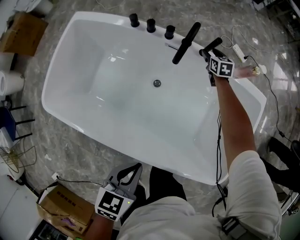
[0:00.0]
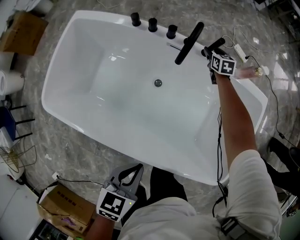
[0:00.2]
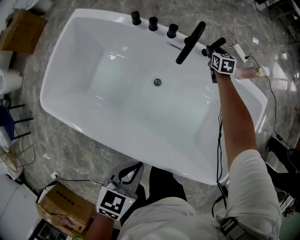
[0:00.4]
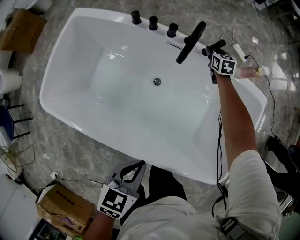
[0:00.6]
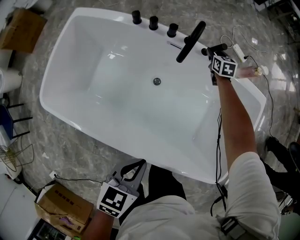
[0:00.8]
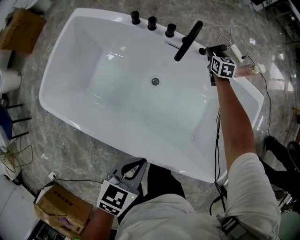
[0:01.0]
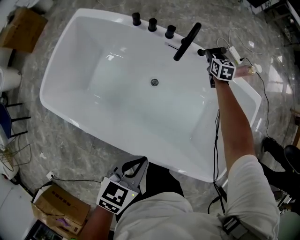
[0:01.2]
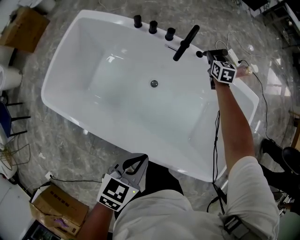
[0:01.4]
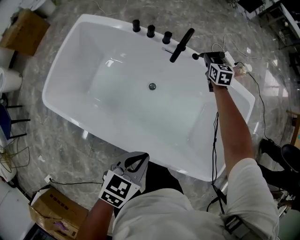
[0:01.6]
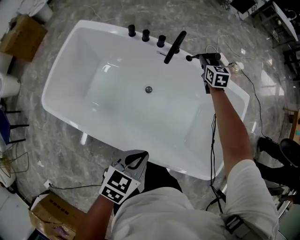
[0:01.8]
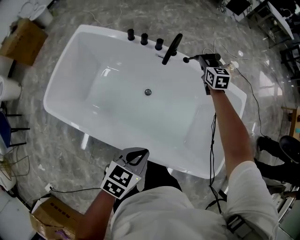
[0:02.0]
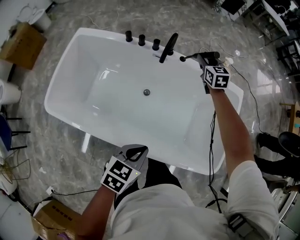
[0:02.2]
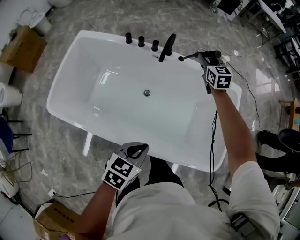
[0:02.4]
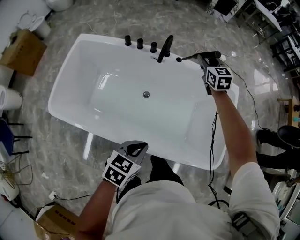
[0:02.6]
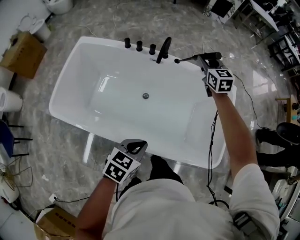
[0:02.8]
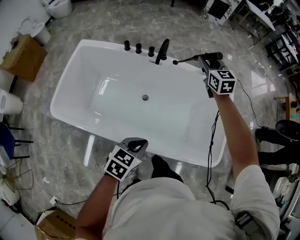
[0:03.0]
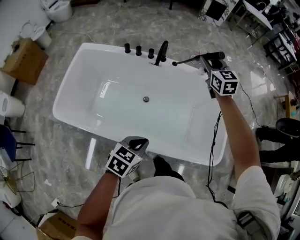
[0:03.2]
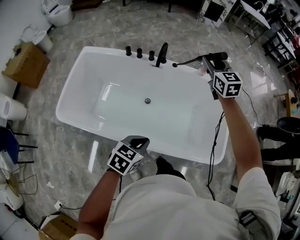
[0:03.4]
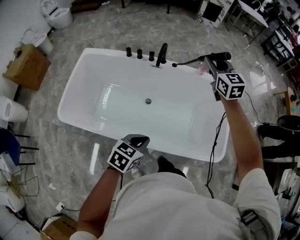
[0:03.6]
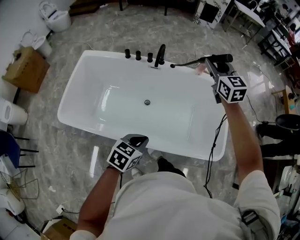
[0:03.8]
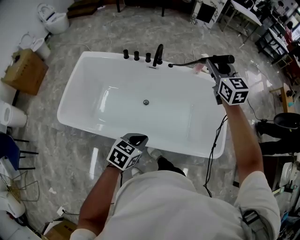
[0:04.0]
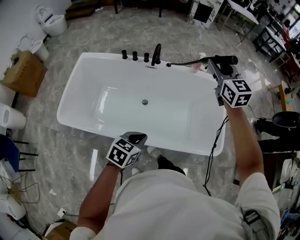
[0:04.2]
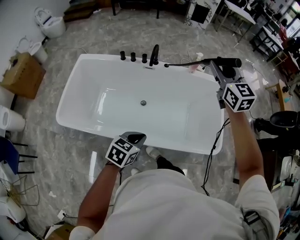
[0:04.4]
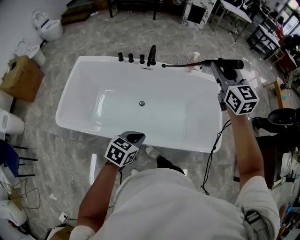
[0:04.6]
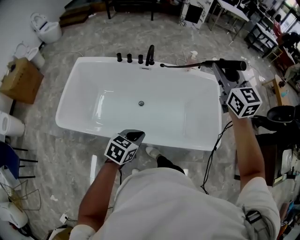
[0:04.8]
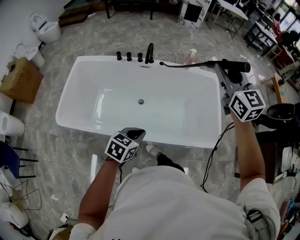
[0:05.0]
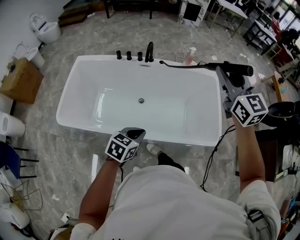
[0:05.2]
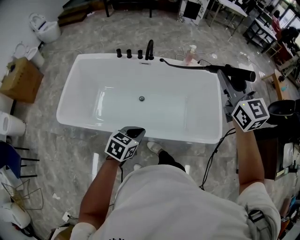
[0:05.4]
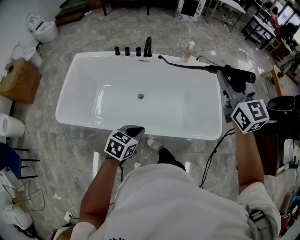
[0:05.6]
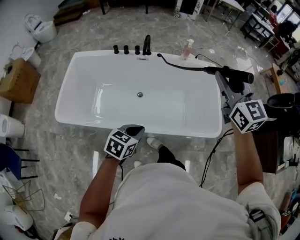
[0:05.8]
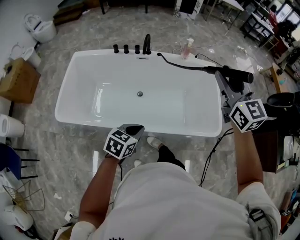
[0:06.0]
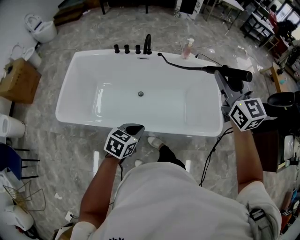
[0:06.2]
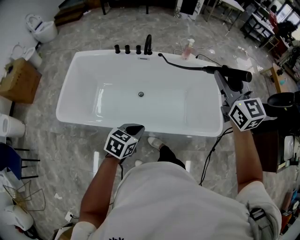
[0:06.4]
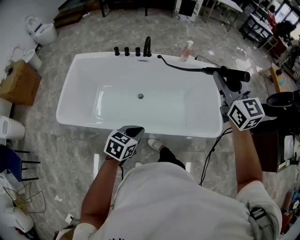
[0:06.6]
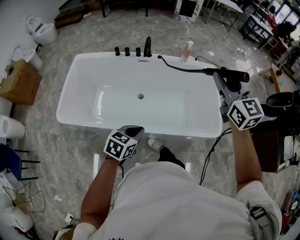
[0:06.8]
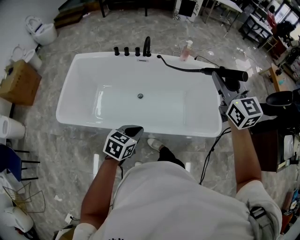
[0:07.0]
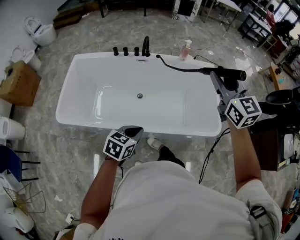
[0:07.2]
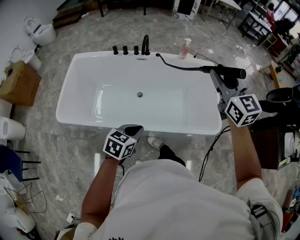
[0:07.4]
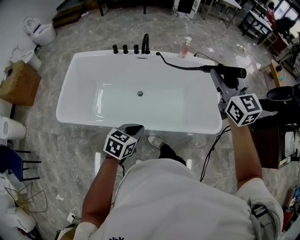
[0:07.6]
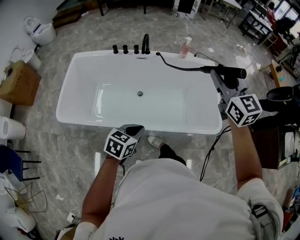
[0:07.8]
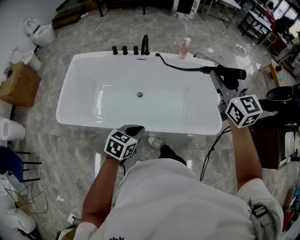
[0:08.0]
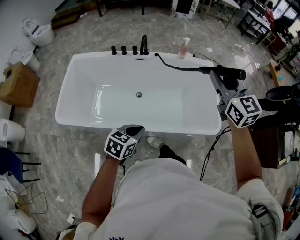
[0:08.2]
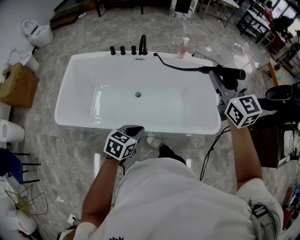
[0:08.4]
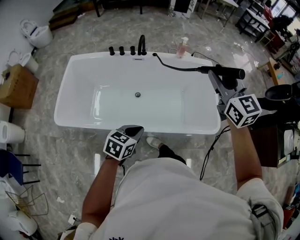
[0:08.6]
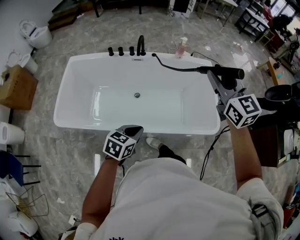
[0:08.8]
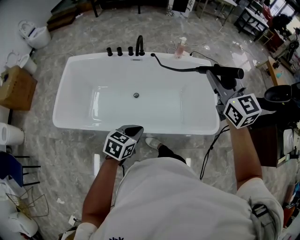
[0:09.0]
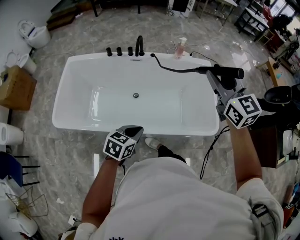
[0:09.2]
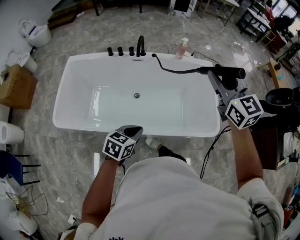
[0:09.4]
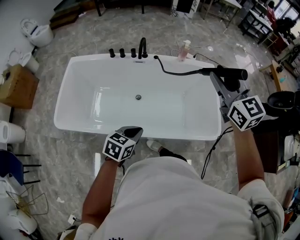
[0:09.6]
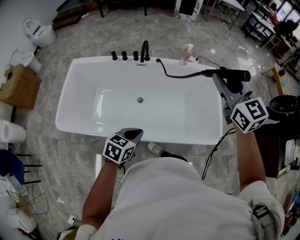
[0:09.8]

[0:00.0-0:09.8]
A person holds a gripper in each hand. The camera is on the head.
0:00.0 to 0:01.4: The right gripper heads upward, covering roughly 10 cm, and closes up.
0:01.4 to 0:02.8: The right gripper travels upward and backward by some 30 cm; the left gripper shifts about 10 cm backward.
0:02.8 to 0:04.2: The left gripper travels backward by about 5 cm; the right gripper is displaced upward, backward and to the right by approximately 30 cm.
0:04.2 to 0:05.6: The left gripper shifts some 5 cm backward. The right gripper shifts approximately 20 cm backward.
0:05.6 to 0:08.4: There are only small adjustments of the grippers.
0:08.4 to 0:09.8: The two grippers go approximately 5 cm forward.

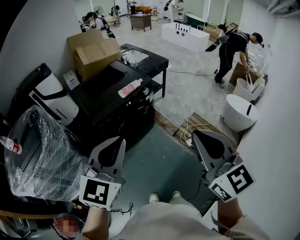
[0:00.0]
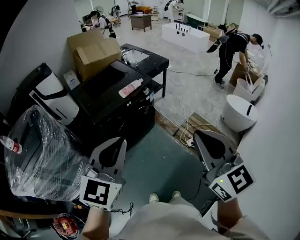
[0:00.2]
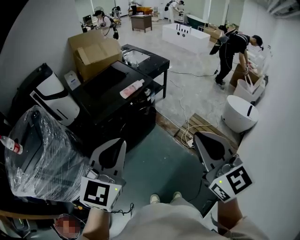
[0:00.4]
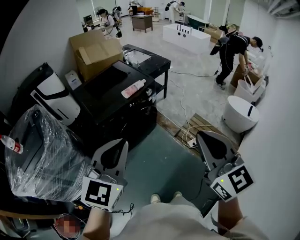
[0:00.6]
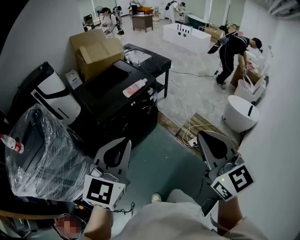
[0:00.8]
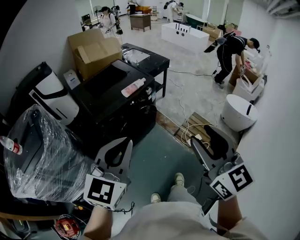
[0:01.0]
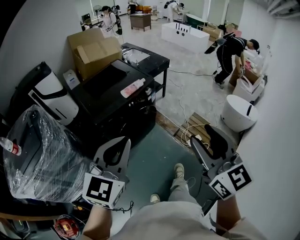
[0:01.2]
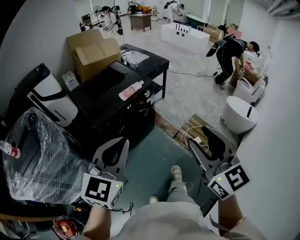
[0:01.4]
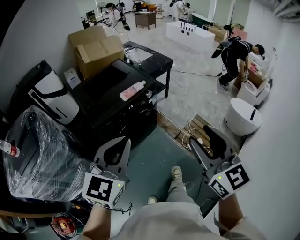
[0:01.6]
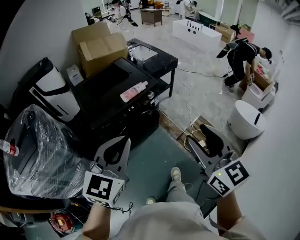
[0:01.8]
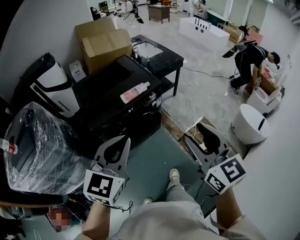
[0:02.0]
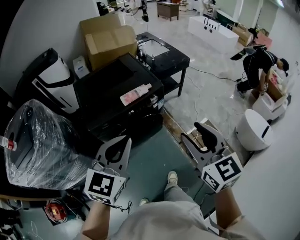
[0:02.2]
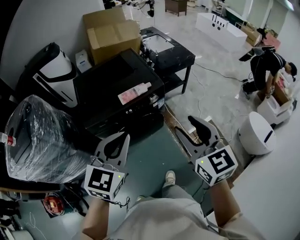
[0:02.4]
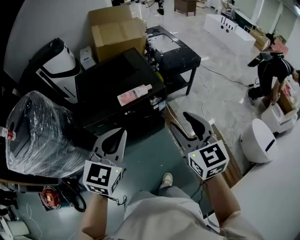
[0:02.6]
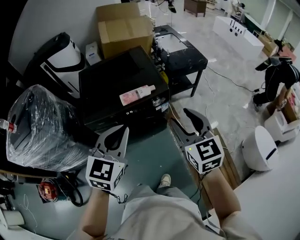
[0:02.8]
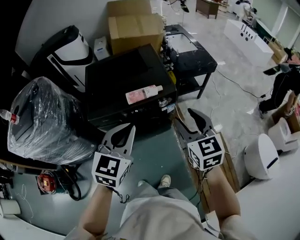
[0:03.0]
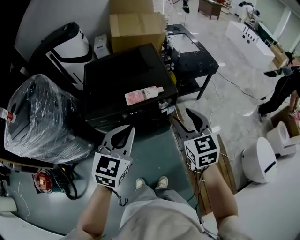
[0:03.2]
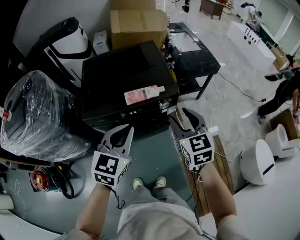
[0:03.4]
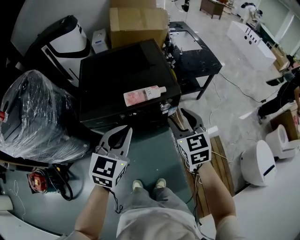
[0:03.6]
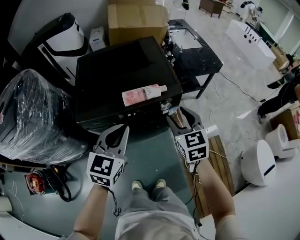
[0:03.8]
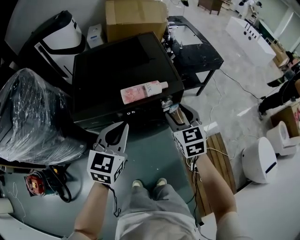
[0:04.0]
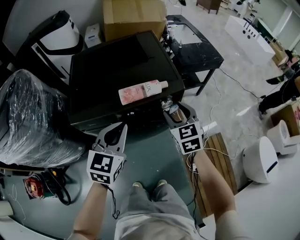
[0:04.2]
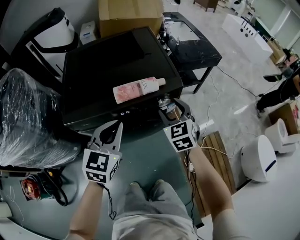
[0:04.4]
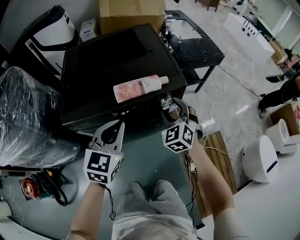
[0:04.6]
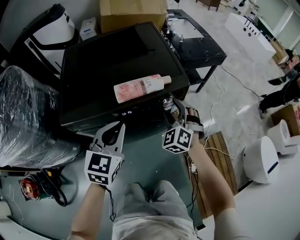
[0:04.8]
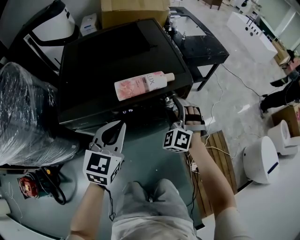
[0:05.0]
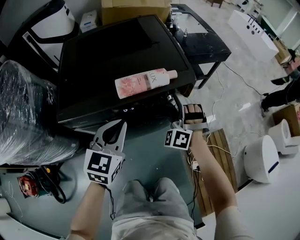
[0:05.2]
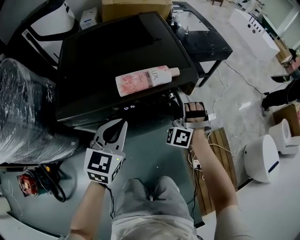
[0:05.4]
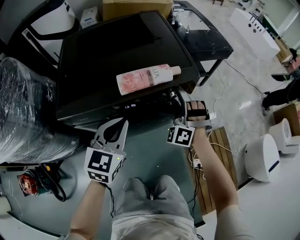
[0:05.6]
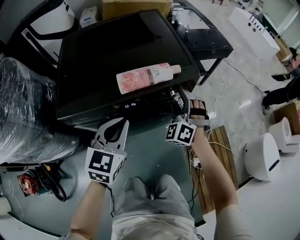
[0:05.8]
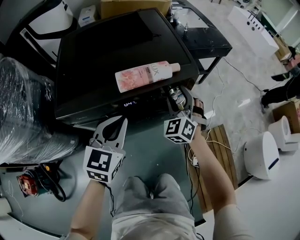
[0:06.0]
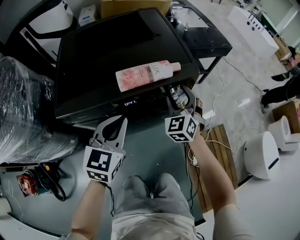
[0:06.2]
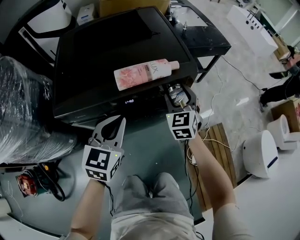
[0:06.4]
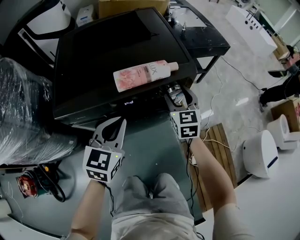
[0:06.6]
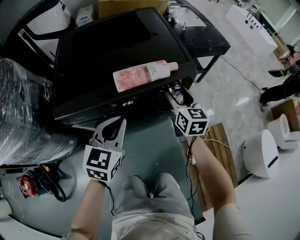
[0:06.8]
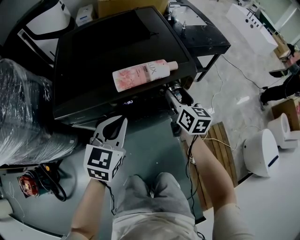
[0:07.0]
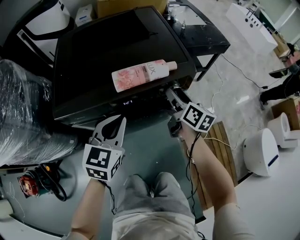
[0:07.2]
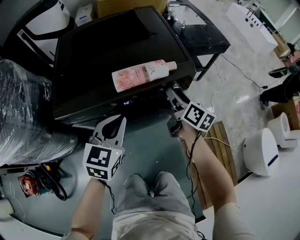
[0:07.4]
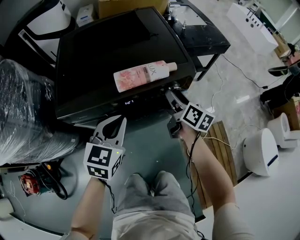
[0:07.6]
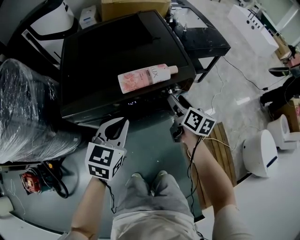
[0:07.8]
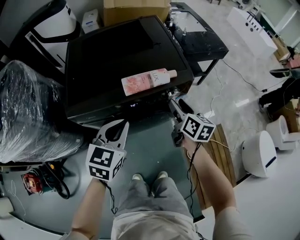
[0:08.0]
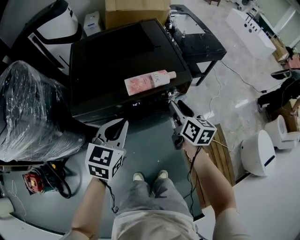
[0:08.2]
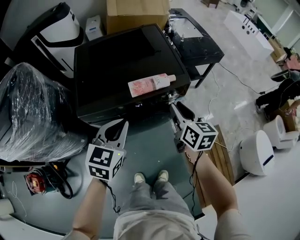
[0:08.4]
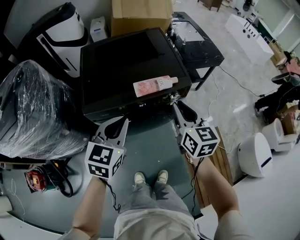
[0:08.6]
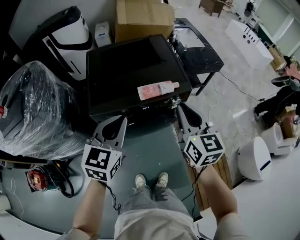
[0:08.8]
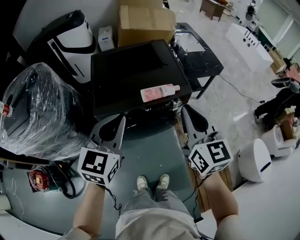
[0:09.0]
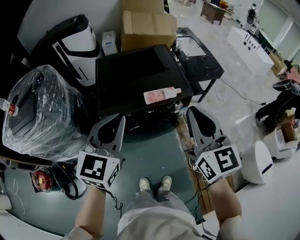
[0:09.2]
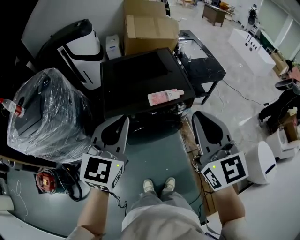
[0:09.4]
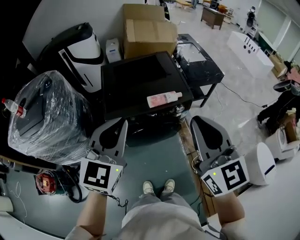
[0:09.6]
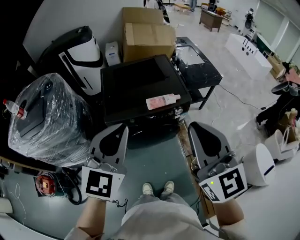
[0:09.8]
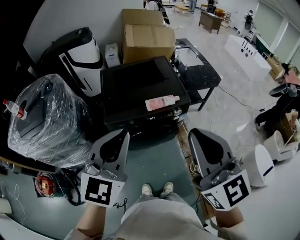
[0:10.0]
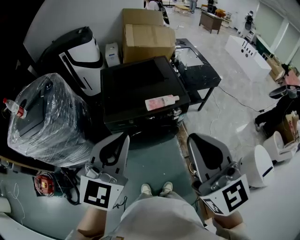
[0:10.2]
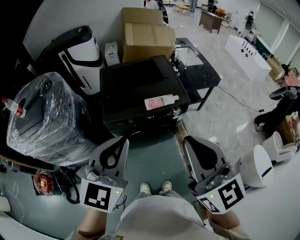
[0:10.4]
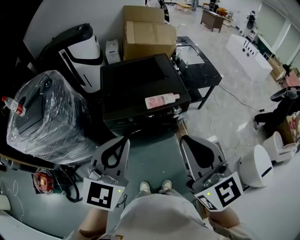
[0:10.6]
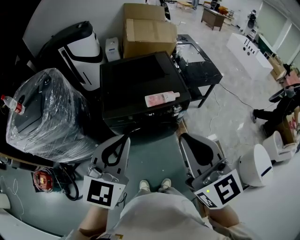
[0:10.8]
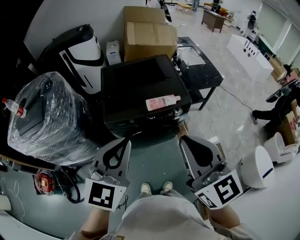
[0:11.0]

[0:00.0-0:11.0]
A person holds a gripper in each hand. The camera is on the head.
0:00.0 to 0:01.6: Both grippers move forward, some 5 cm. The right gripper opens.
0:01.6 to 0:03.2: The right gripper shifts roughly 40 cm forward and downward, and swivels some 30 degrees. The left gripper travels forward, downward and to the right by about 30 cm, and rotates approximately 30 degrees.
0:03.2 to 0:04.8: The two grippers go approximately 25 cm downward and forward. The right gripper rotates around the line of its fingers by about 40 degrees, counterclockwise from behind.
0:06.2 to 0:07.8: The right gripper twists about 80 degrees clockwise, seen from behind.
0:07.8 to 0:09.4: The left gripper goes some 35 cm upward, and changes its angle by about 20 degrees; the right gripper travels upward and backward by about 50 cm, twists about 50 degrees counterclockwise, seen from behind, and closes up.
0:09.4 to 0:11.0: The grippers both shift backward by roughly 5 cm.

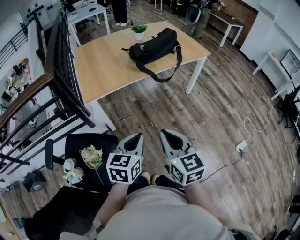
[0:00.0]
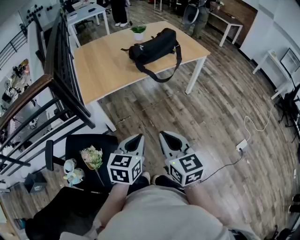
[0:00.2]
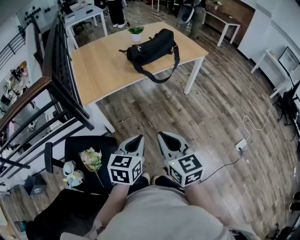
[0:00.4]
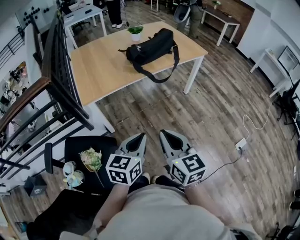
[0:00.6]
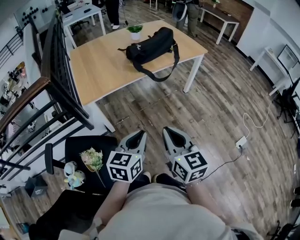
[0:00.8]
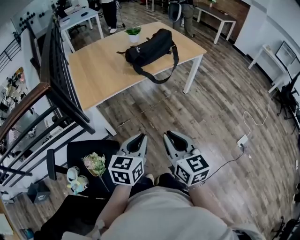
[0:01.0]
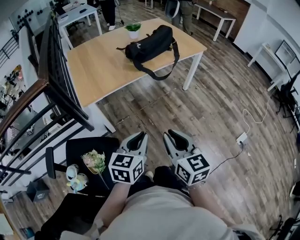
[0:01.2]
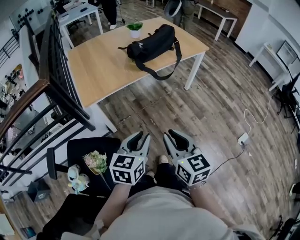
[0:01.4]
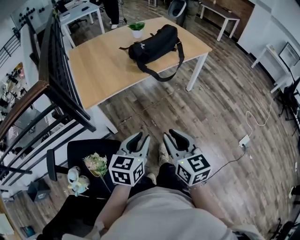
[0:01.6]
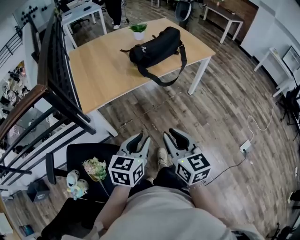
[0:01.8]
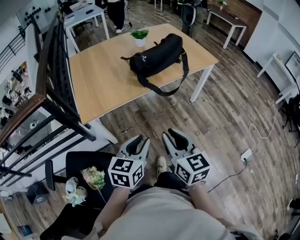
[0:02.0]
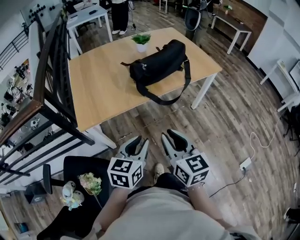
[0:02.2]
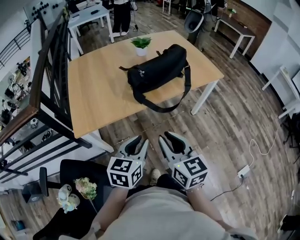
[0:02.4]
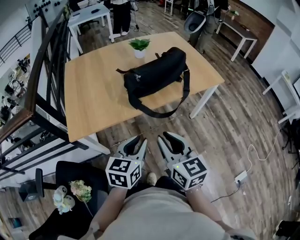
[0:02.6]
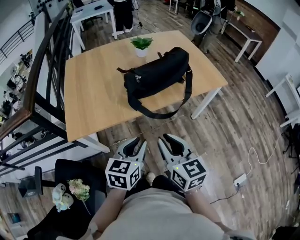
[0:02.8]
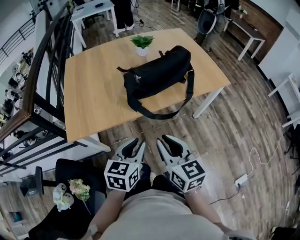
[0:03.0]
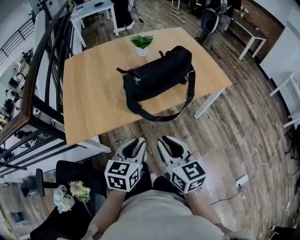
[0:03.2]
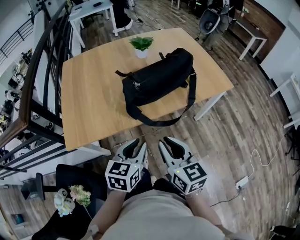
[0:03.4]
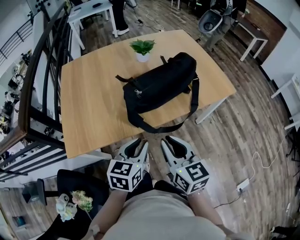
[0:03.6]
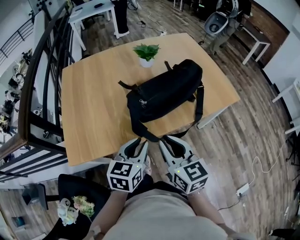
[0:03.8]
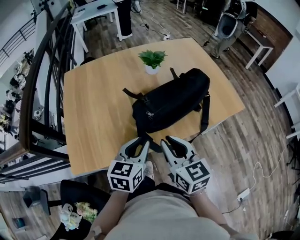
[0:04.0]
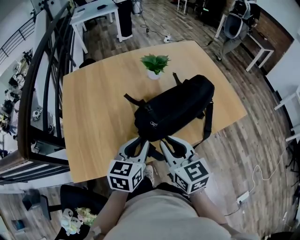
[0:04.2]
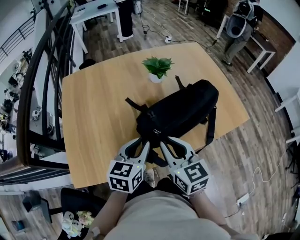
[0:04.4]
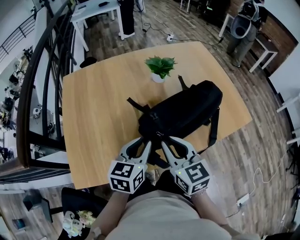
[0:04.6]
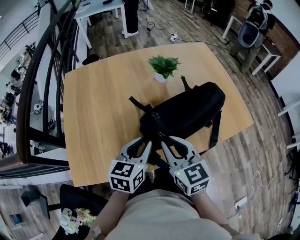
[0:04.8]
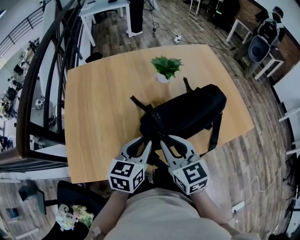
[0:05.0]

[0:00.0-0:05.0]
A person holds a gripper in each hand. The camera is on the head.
0:00.0 to 0:01.6: The grippers stay close to where they were, moving slightly.
0:01.6 to 0:03.4: Both grippers travel together forward, roughly 30 cm.
0:03.4 to 0:05.0: The two grippers go some 25 cm forward.
